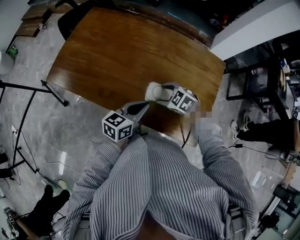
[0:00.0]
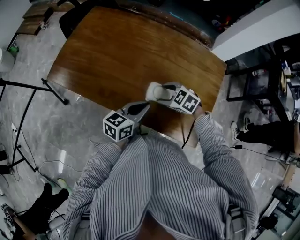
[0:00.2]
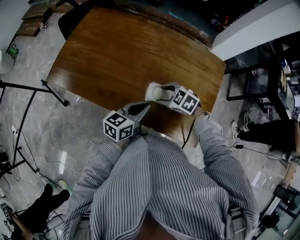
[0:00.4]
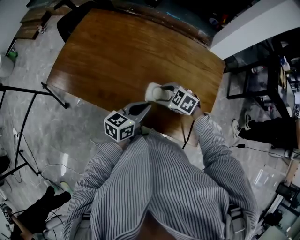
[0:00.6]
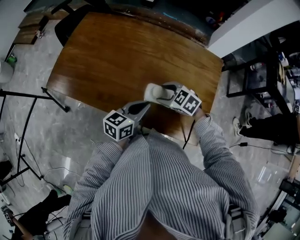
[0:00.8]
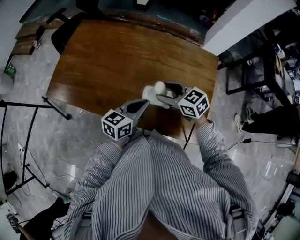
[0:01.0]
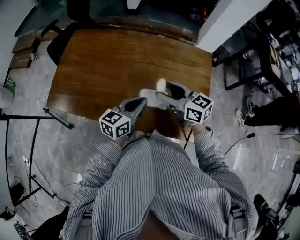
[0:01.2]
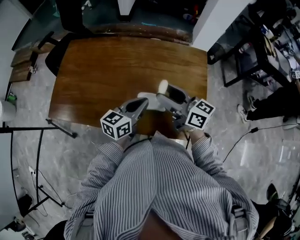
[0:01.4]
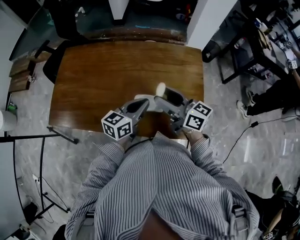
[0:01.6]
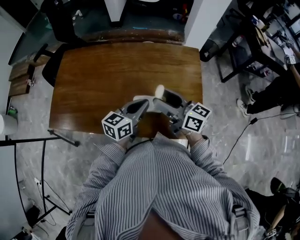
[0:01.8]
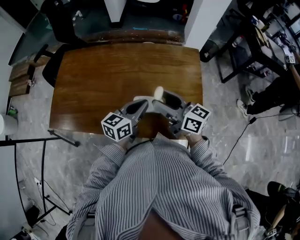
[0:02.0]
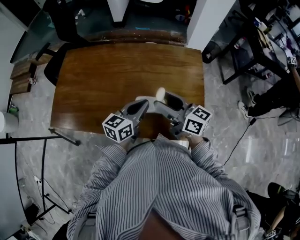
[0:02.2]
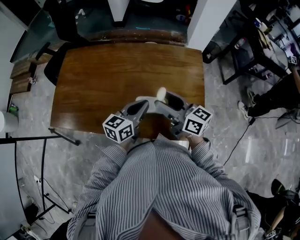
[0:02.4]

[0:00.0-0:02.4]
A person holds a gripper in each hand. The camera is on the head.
0:00.0 to 0:01.2: The left gripper ends up approximately 5 cm from where it was, while the right gripper moves upward, about 15 cm, and points its fingers roughly 40 degrees further upward.
0:01.2 to 0:02.4: The right gripper changes place by roughly 5 cm.

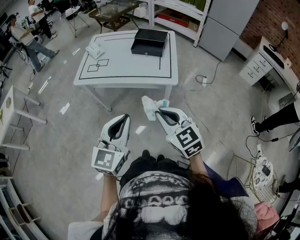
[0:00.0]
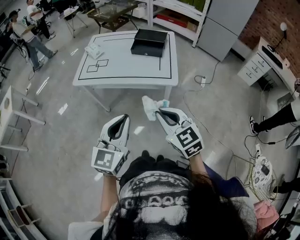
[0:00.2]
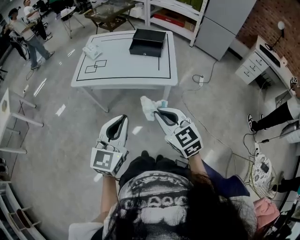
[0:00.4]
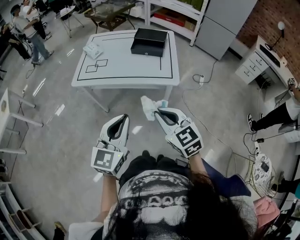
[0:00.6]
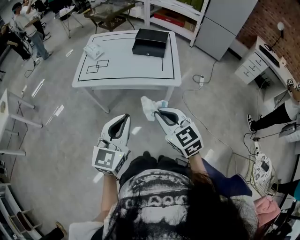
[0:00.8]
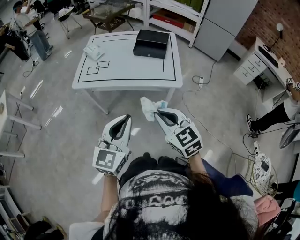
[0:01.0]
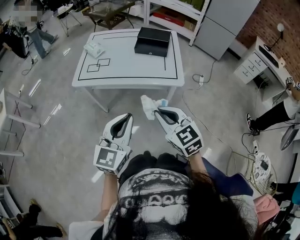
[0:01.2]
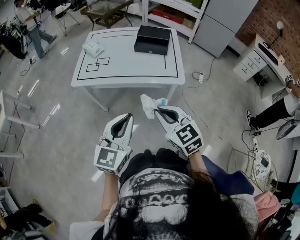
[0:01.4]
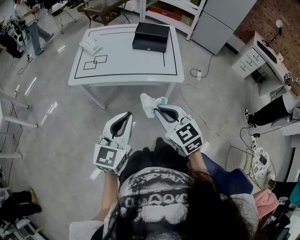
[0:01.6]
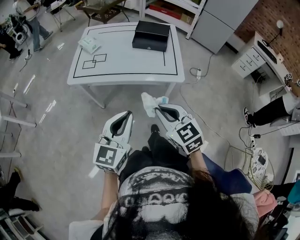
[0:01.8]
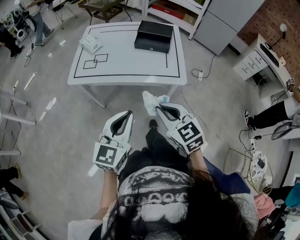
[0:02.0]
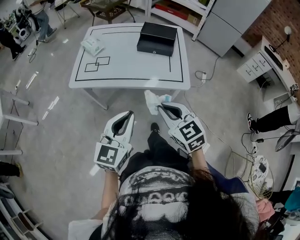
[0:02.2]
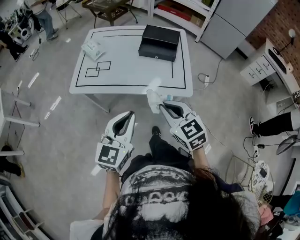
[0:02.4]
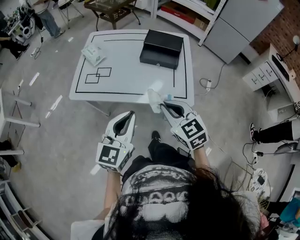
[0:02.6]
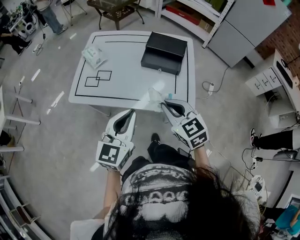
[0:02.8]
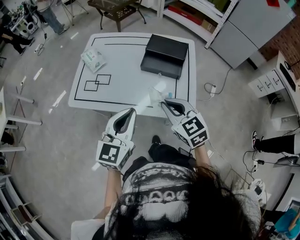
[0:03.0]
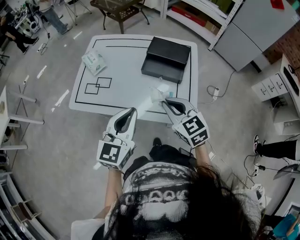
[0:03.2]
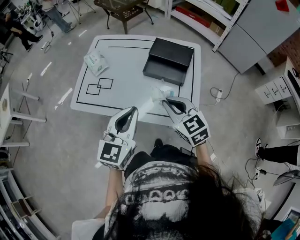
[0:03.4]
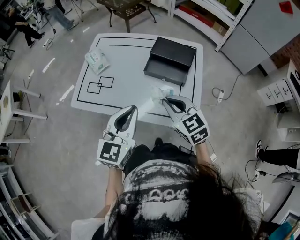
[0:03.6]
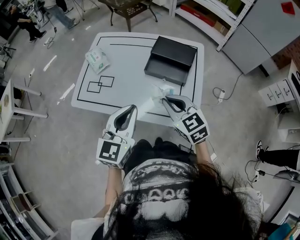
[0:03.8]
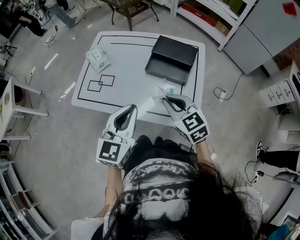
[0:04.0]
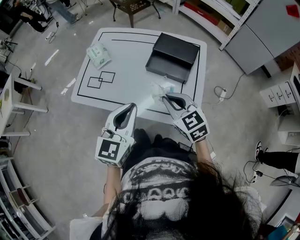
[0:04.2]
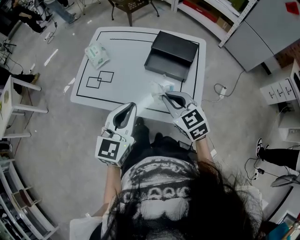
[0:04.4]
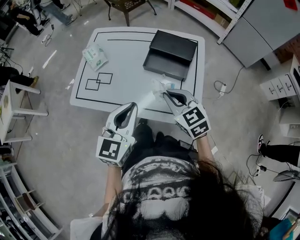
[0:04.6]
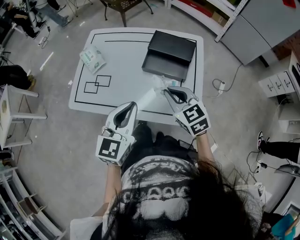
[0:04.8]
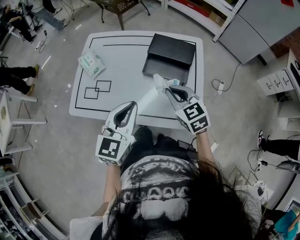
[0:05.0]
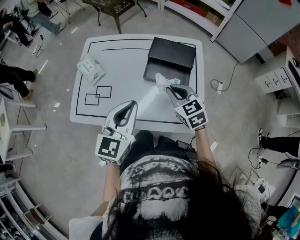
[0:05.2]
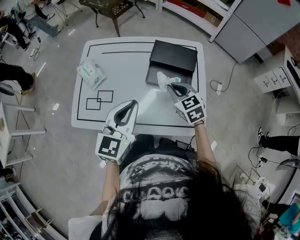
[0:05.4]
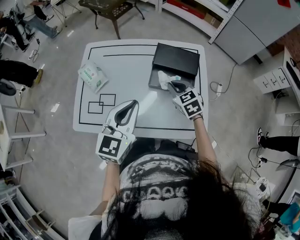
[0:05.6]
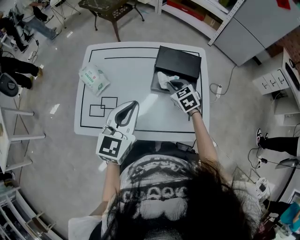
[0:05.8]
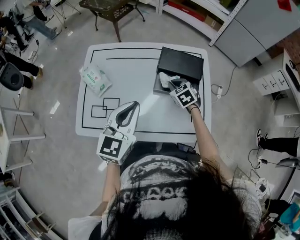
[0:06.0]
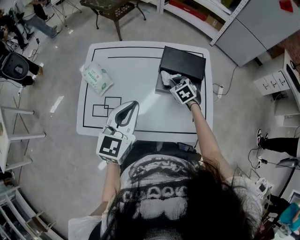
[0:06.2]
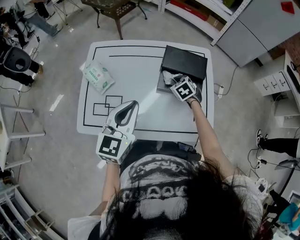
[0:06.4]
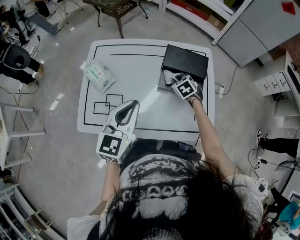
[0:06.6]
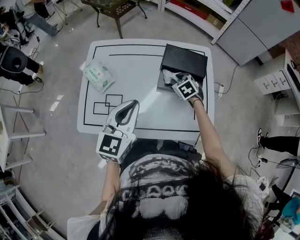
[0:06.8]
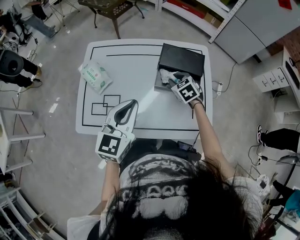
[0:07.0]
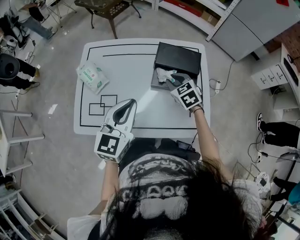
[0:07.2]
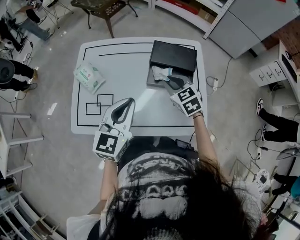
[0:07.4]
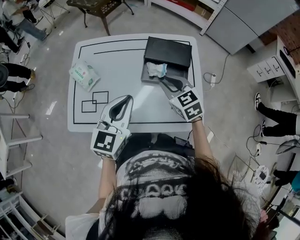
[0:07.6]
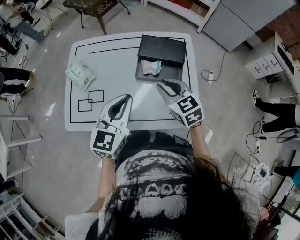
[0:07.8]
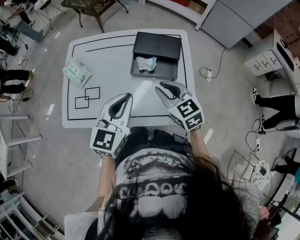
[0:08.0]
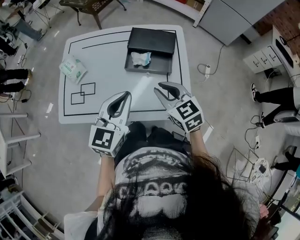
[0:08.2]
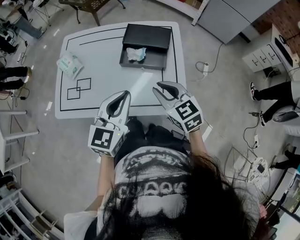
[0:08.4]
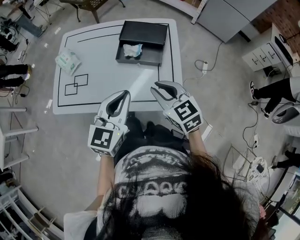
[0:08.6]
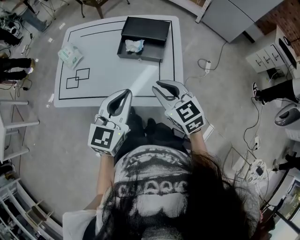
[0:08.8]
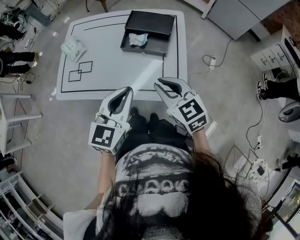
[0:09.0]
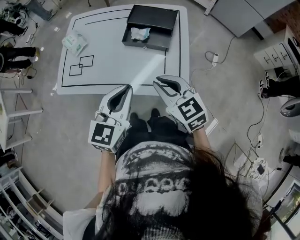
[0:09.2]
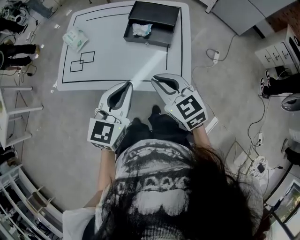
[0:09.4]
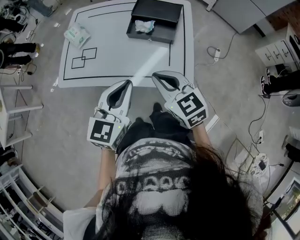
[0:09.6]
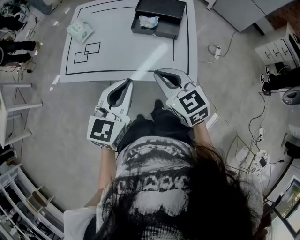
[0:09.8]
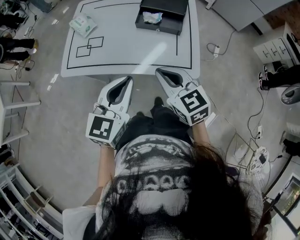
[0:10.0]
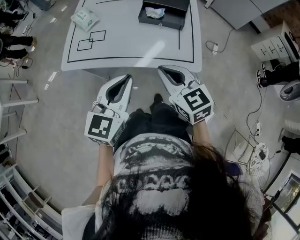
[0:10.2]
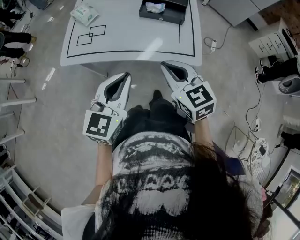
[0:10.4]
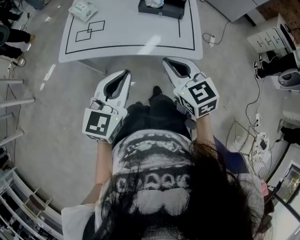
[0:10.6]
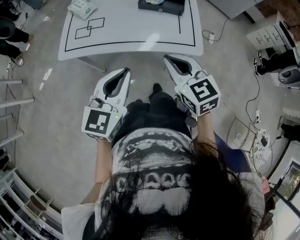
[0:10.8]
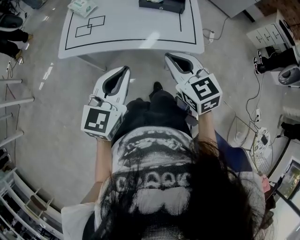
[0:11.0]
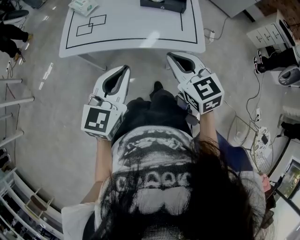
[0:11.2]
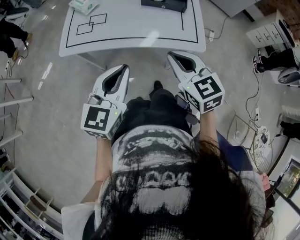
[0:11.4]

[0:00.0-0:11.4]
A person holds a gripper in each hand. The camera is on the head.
0:00.0 to 0:01.4: The right gripper goes approximately 10 cm to the left. Meanwhile the left gripper travels to the left and forward by approximately 10 cm.
0:01.4 to 0:02.8: The two grippers go about 25 cm forward.
0:02.8 to 0:04.2: Both grippers travel together forward, approximately 10 cm.
0:04.2 to 0:05.6: The right gripper travels forward and downward by roughly 20 cm, and turns by approximately 20 degrees, while the left gripper moves forward, some 15 cm.
0:05.6 to 0:07.2: The right gripper travels downward and back again, approximately 10 cm each way, and opens up.
0:07.2 to 0:08.6: The right gripper travels backward, to the right and upward by some 25 cm, and turns by approximately 20 degrees. The left gripper heads to the right and backward, covering some 20 cm.
0:08.6 to 0:10.0: The grippers both shift backward and to the left by roughly 15 cm.
0:10.0 to 0:11.4: The left gripper travels to the left and backward by some 15 cm; the right gripper is displaced backward by about 10 cm.

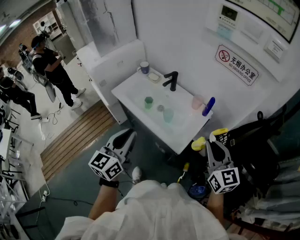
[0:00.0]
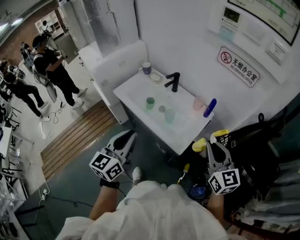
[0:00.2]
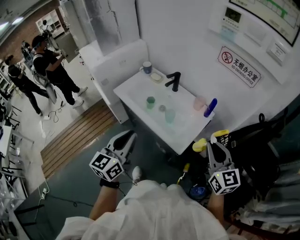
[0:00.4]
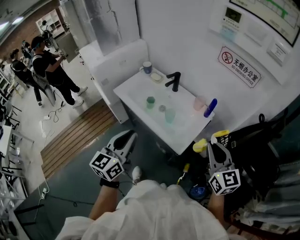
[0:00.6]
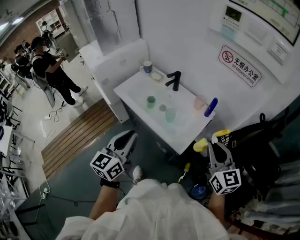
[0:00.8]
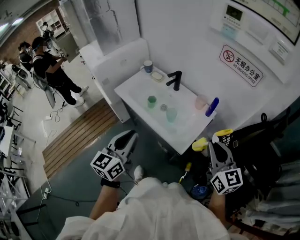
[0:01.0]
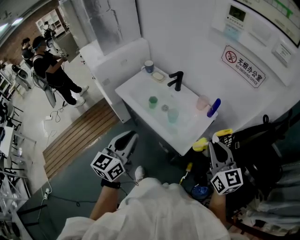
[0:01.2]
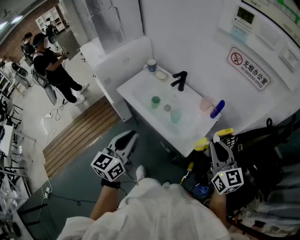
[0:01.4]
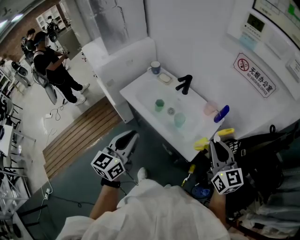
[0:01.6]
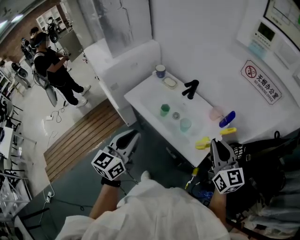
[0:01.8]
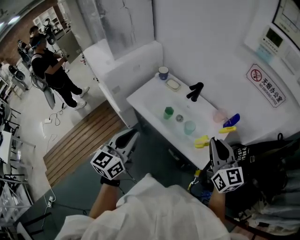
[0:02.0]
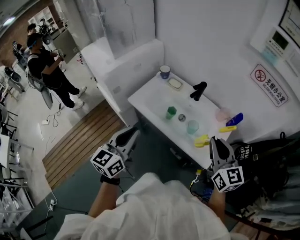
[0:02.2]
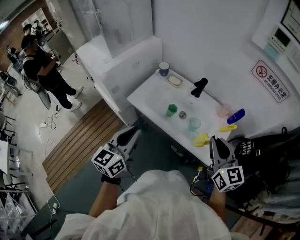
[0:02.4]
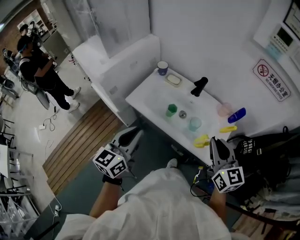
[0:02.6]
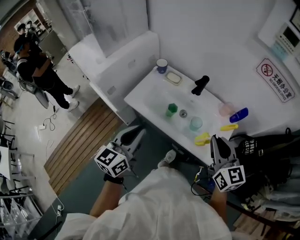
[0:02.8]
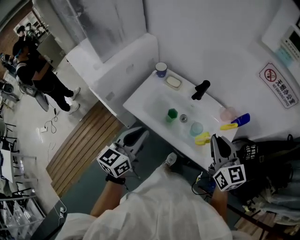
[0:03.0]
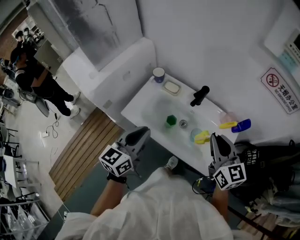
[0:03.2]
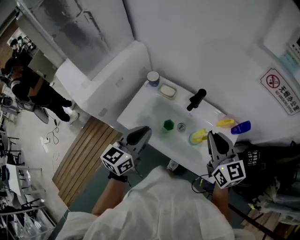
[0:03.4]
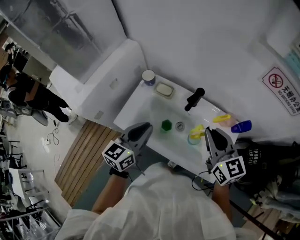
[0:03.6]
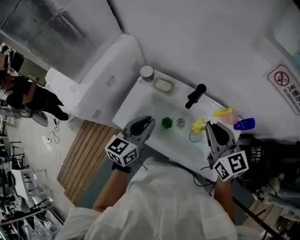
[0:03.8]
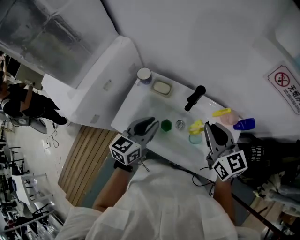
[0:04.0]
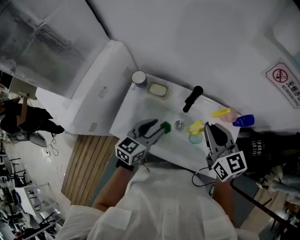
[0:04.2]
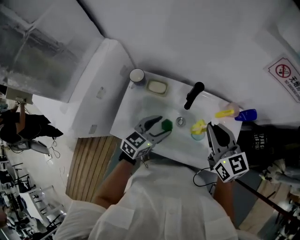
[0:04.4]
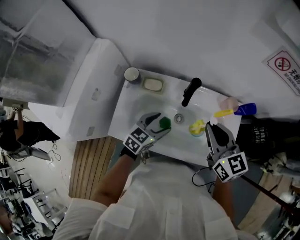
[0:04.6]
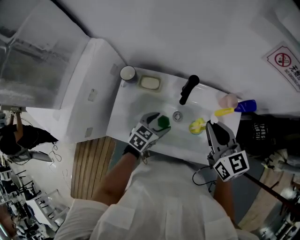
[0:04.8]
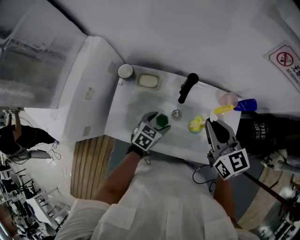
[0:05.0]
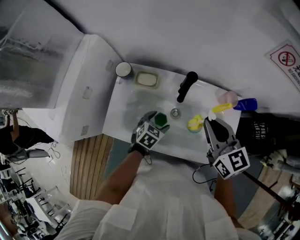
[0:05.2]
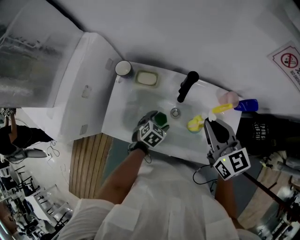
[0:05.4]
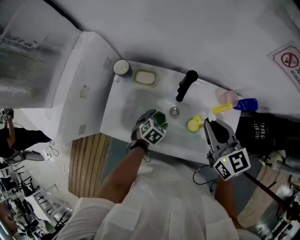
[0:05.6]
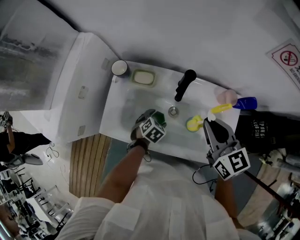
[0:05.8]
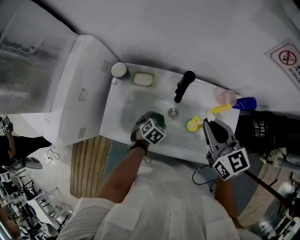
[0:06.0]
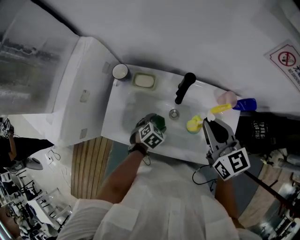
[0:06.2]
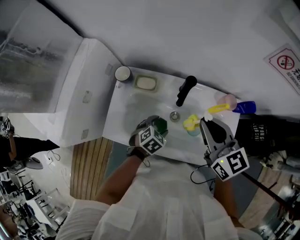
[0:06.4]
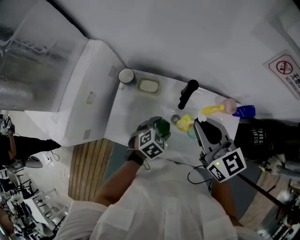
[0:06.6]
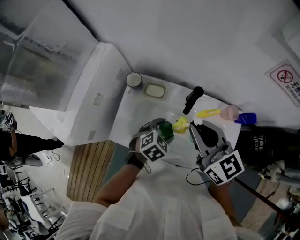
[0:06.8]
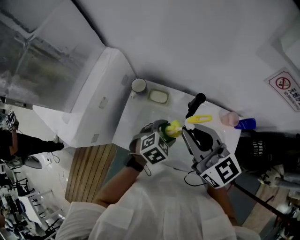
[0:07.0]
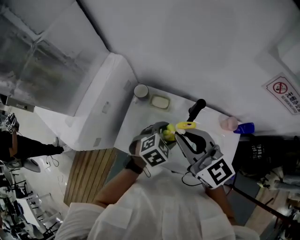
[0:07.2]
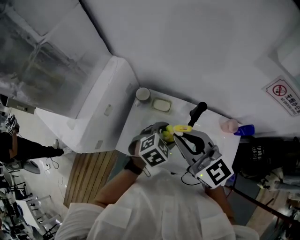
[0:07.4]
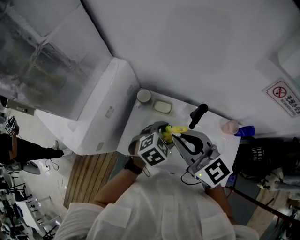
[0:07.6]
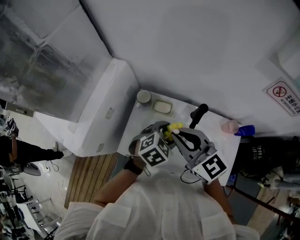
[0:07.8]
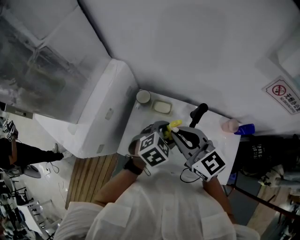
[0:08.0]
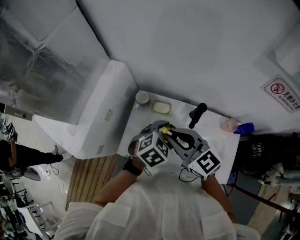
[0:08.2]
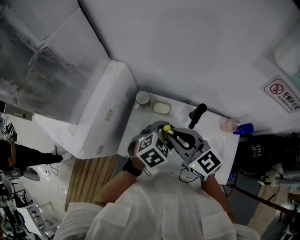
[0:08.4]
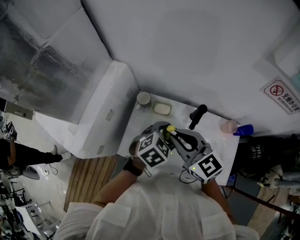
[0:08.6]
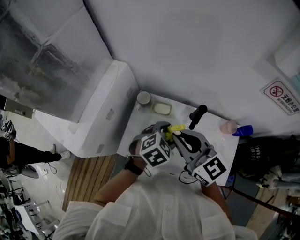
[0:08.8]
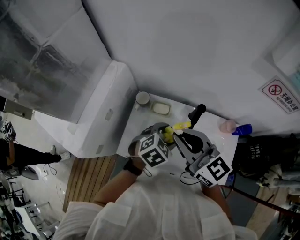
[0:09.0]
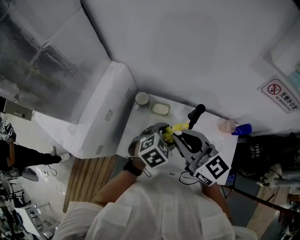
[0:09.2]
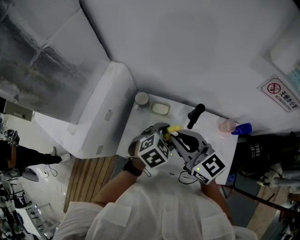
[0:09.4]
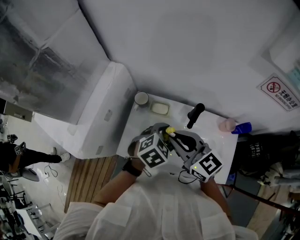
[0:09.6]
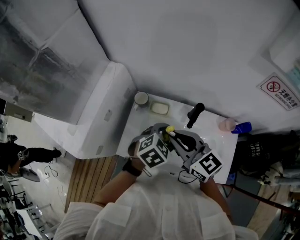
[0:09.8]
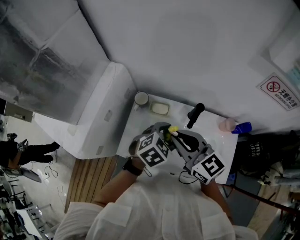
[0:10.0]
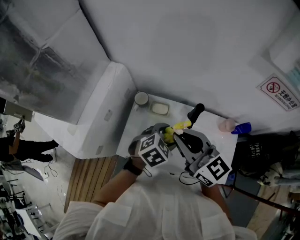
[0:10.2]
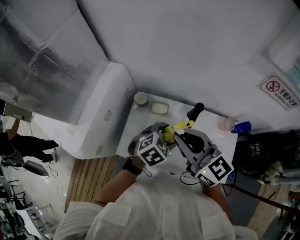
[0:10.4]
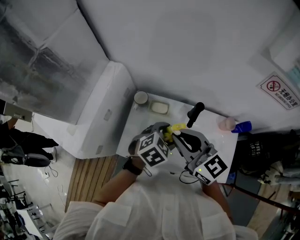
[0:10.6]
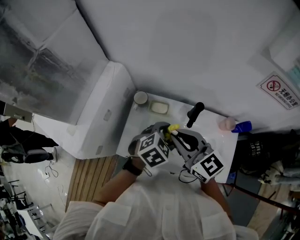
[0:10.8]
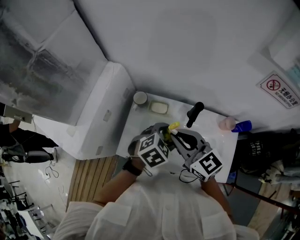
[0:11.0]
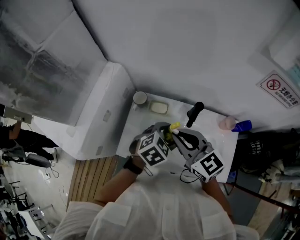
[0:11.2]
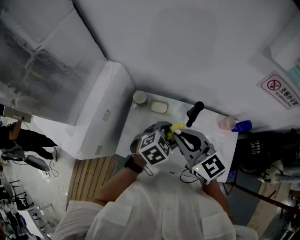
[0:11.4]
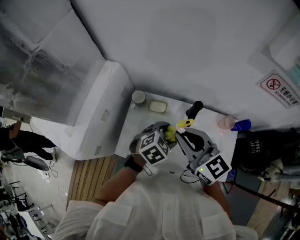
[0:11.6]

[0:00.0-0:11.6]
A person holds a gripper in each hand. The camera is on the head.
0:00.0 to 0:01.4: There are only small adjustments of the grippers.
0:01.4 to 0:02.8: Both grippers travel together to the left and forward, approximately 20 cm.
0:02.8 to 0:04.4: The left gripper moves forward and downward, roughly 30 cm, changes its angle by approximately 40 degrees, and opens its fingers. The right gripper goes approximately 20 cm forward.
0:04.4 to 0:05.8: The left gripper moves downward, approximately 20 cm, and angles its fingers downward, by about 40 degrees.
0:05.8 to 0:07.2: The right gripper is displaced to the left and upward by roughly 20 cm, and changes its angle by some 30 degrees. The left gripper shifts approximately 20 cm upward.
0:08.8 to 0:11.6: There are only small adjustments of the grippers.
